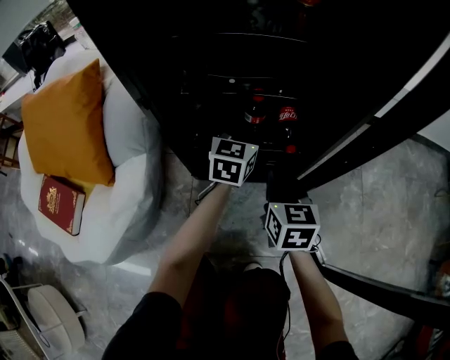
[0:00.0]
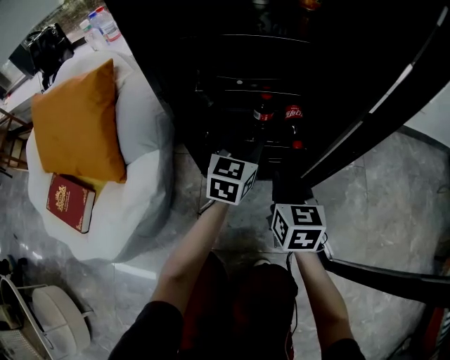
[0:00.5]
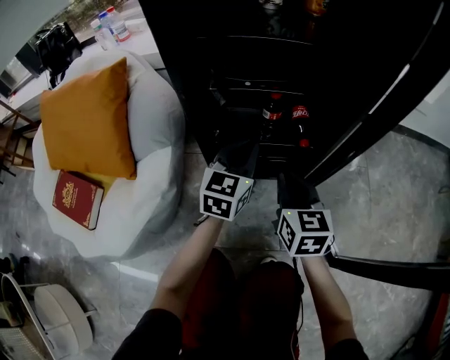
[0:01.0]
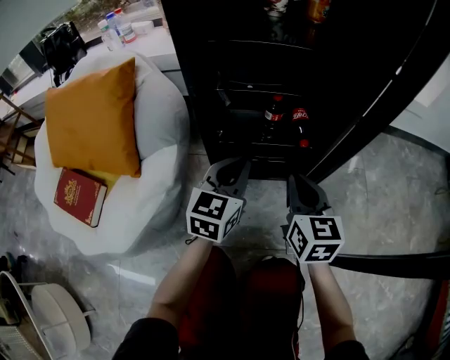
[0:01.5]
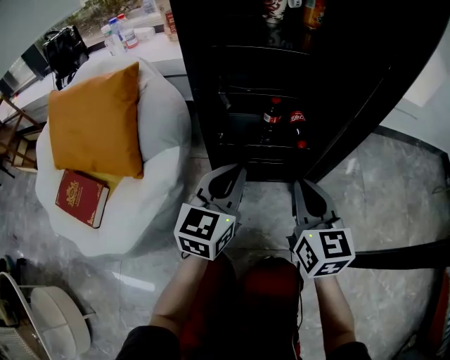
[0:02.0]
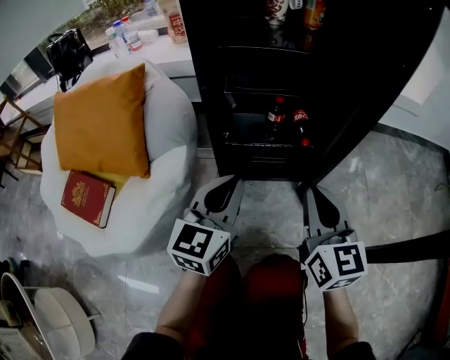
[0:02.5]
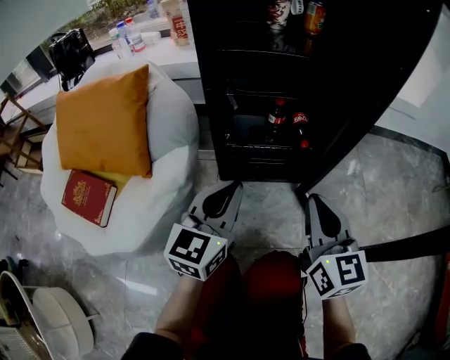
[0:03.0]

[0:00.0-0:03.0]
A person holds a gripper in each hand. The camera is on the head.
0:00.0 to 0:01.5: The right gripper heads upward and backward, covering some 10 cm. Meanwhile the left gripper travels backward by approximately 20 cm, and closes.
0:01.5 to 0:03.0: The two grippers go roughly 15 cm backward and upward.

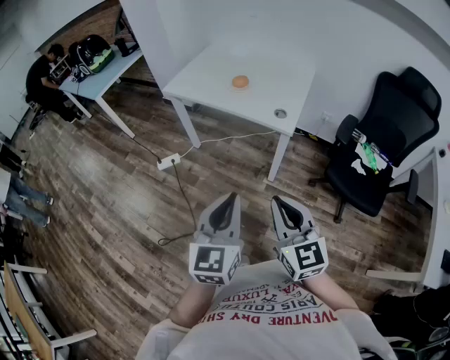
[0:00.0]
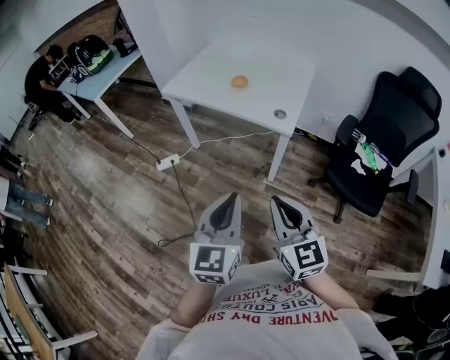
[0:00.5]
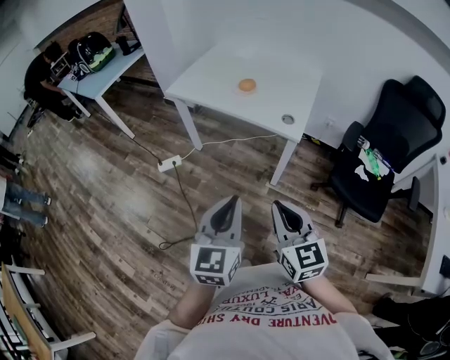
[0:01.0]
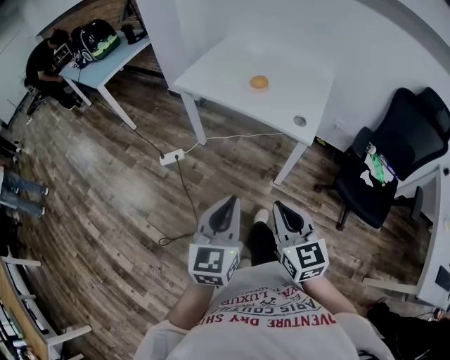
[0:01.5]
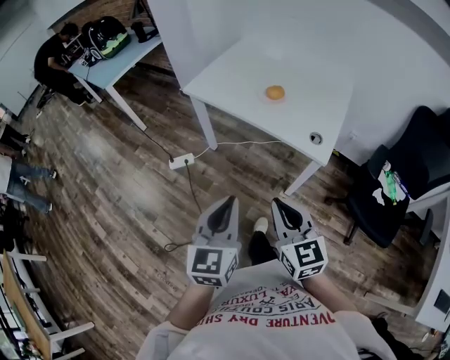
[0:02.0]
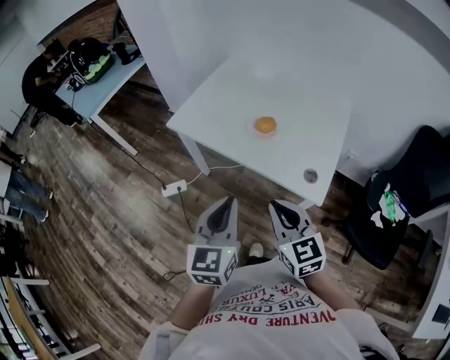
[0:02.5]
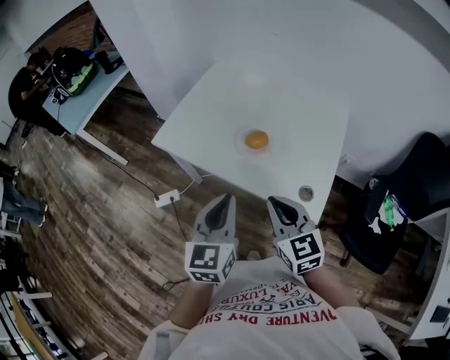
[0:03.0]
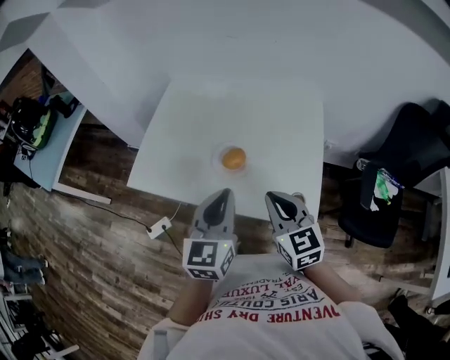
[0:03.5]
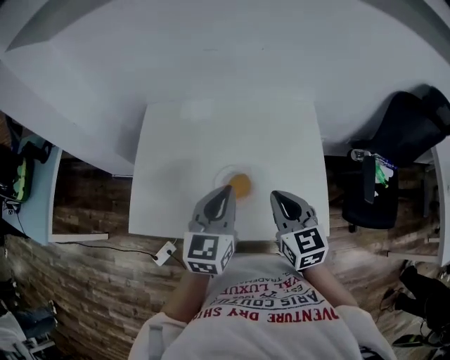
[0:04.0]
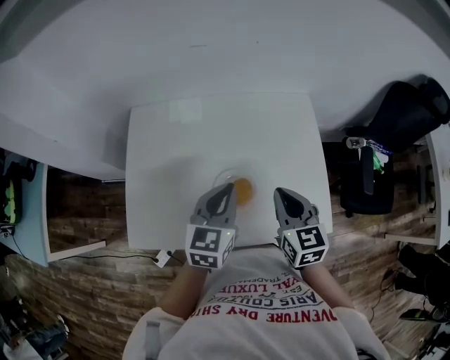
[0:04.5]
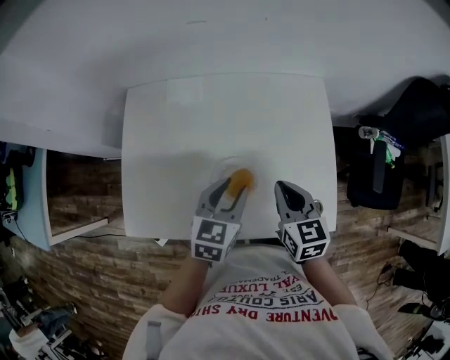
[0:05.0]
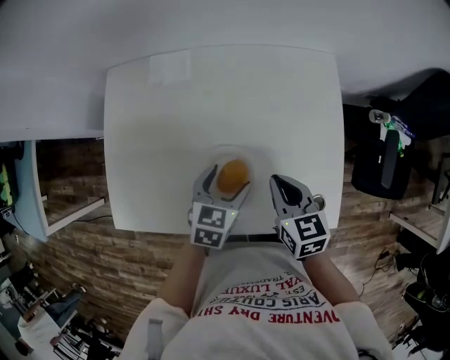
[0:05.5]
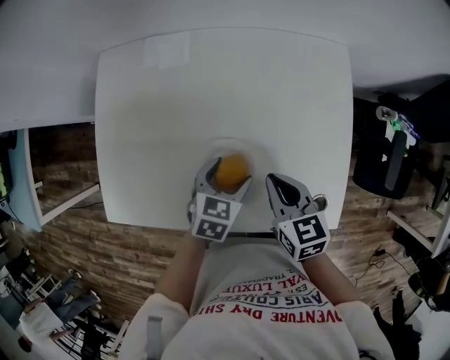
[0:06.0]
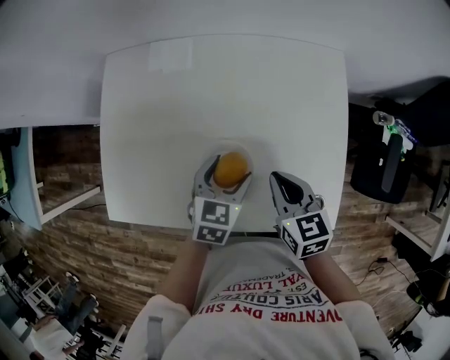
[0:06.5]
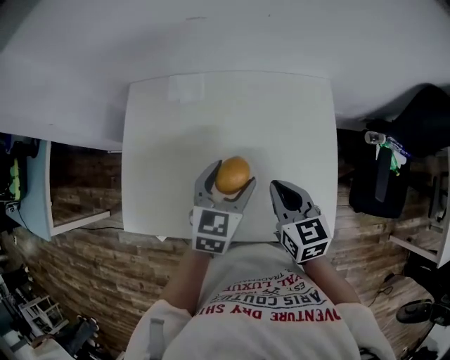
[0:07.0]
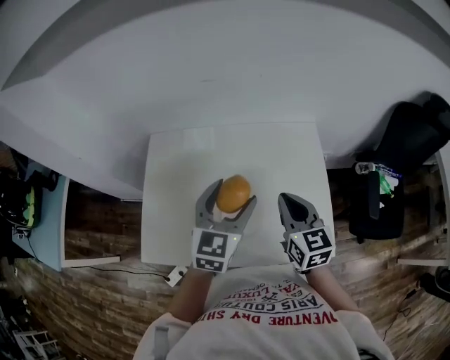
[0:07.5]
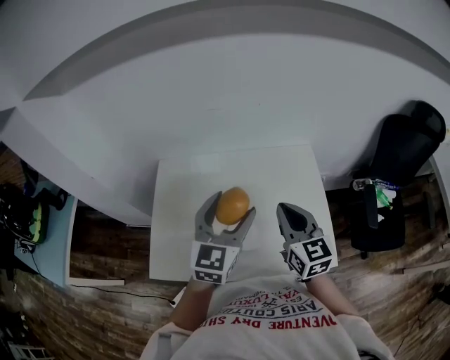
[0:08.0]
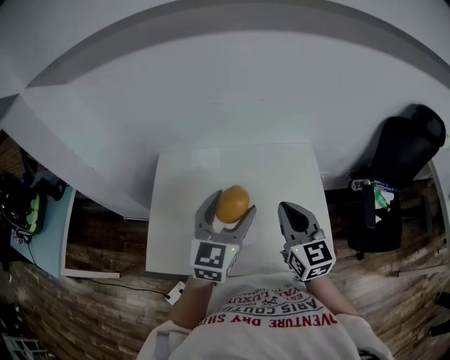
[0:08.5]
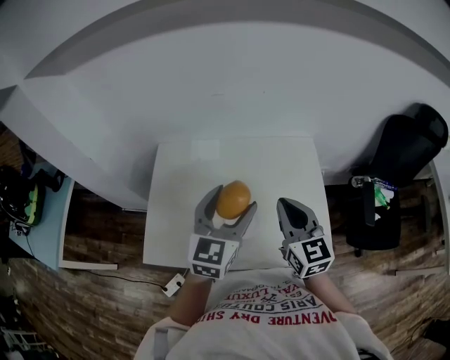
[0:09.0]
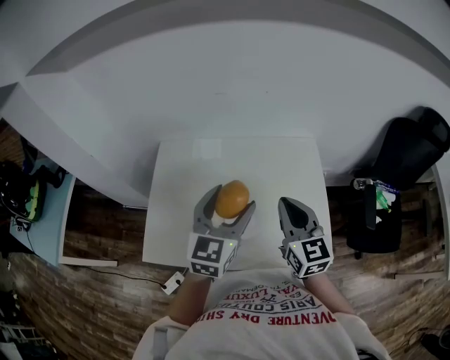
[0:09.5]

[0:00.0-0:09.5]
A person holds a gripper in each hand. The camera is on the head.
0:00.0 to 0:02.0: The grippers both shift forward and to the left by approximately 20 cm.
0:02.0 to 0:04.0: The two grippers travel together, some 50 cm. The left gripper rotates roughly 30 degrees. The right gripper rotates roughly 30 degrees.
0:04.0 to 0:05.5: The left gripper shifts approximately 20 cm downward, rotates some 30 degrees, and opens, while the right gripper goes approximately 15 cm downward and forward, and rotates some 20 degrees.
0:05.5 to 0:07.5: The left gripper travels upward by some 25 cm, and swivels roughly 30 degrees; the right gripper goes some 15 cm upward, and changes its angle by approximately 20 degrees.
0:07.5 to 0:09.5: The left gripper changes place by roughly 5 cm; the right gripper moves upward, some 5 cm.

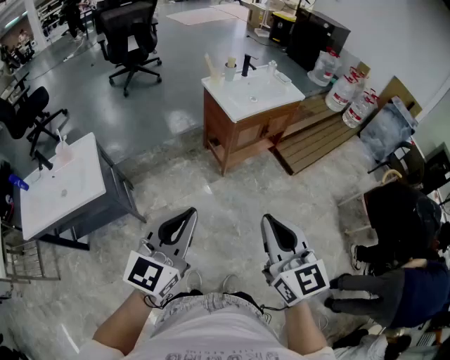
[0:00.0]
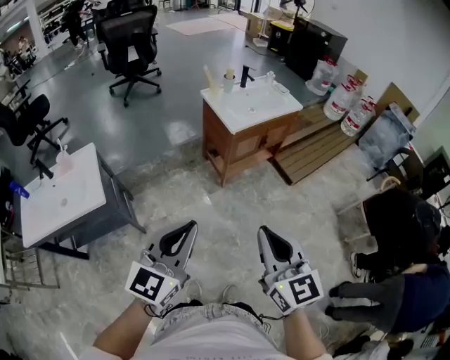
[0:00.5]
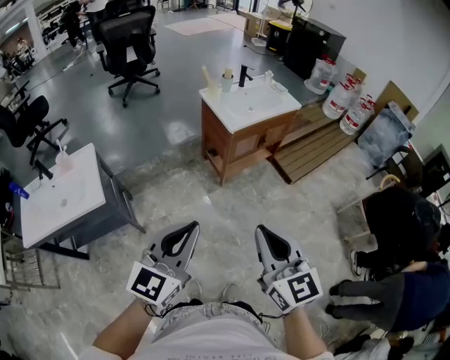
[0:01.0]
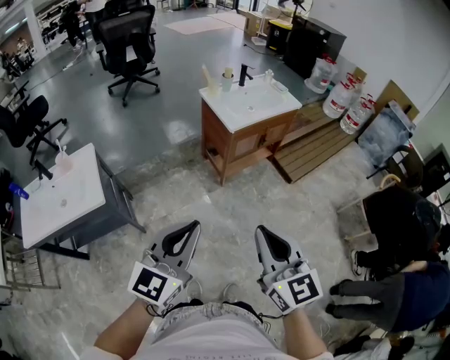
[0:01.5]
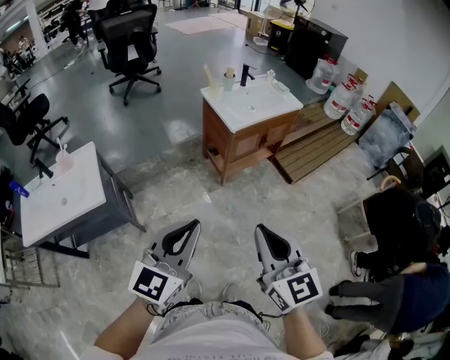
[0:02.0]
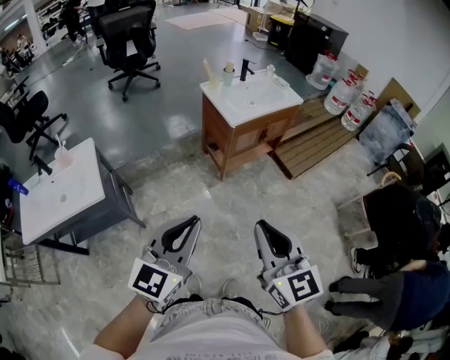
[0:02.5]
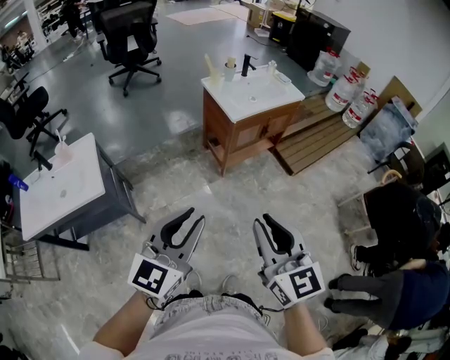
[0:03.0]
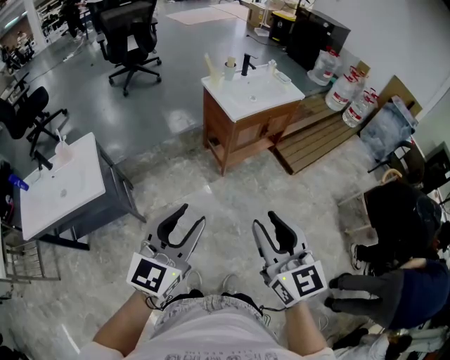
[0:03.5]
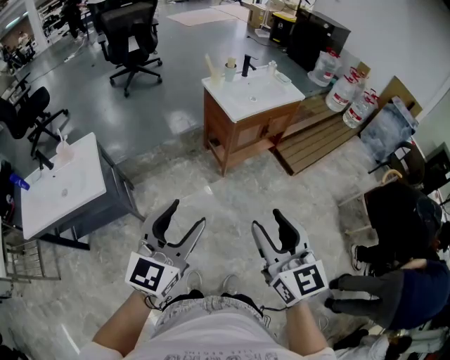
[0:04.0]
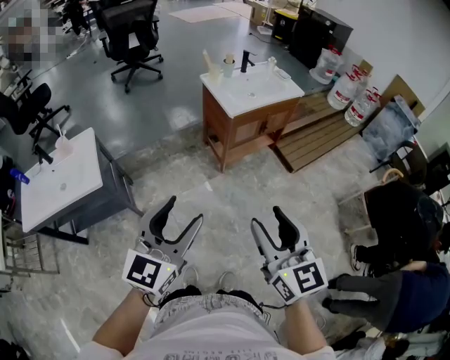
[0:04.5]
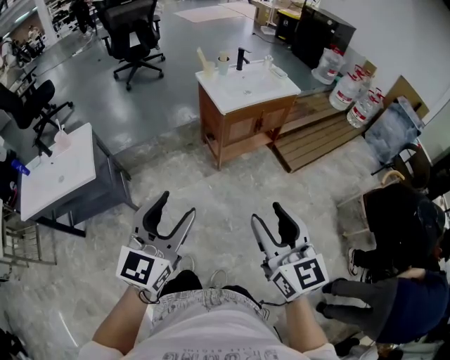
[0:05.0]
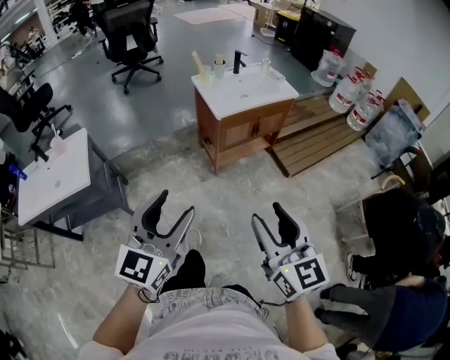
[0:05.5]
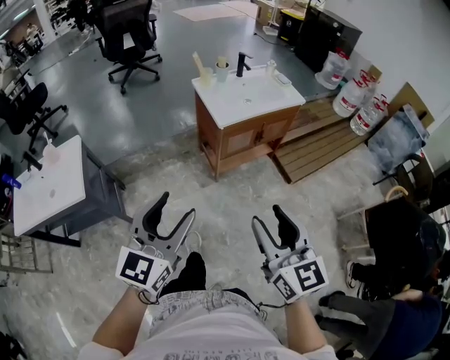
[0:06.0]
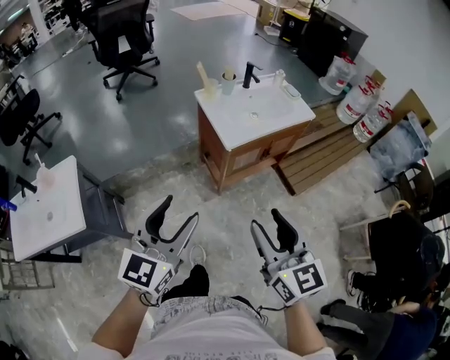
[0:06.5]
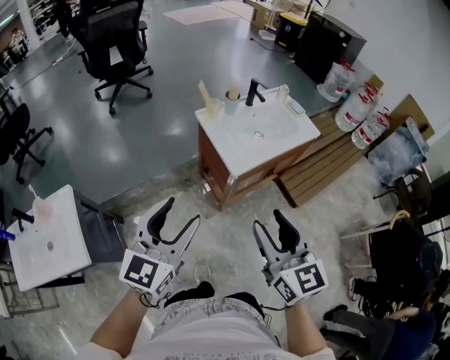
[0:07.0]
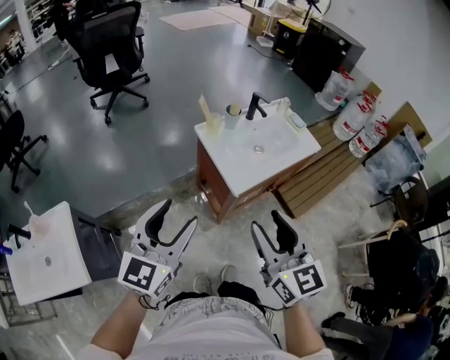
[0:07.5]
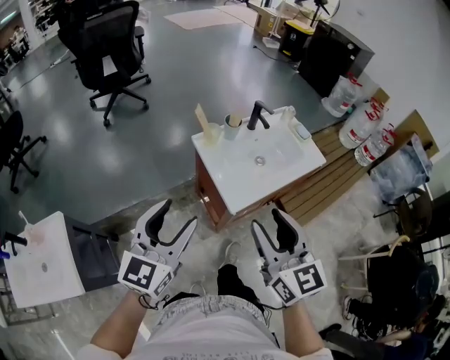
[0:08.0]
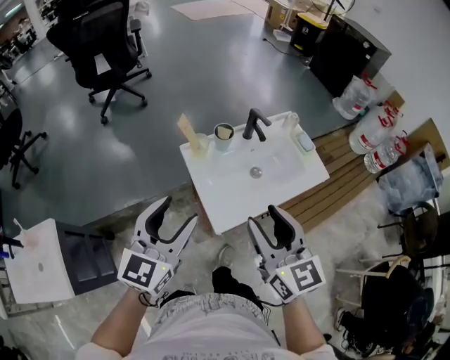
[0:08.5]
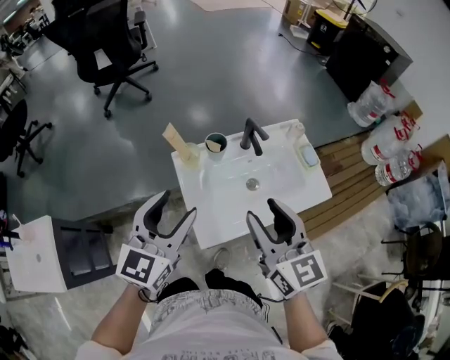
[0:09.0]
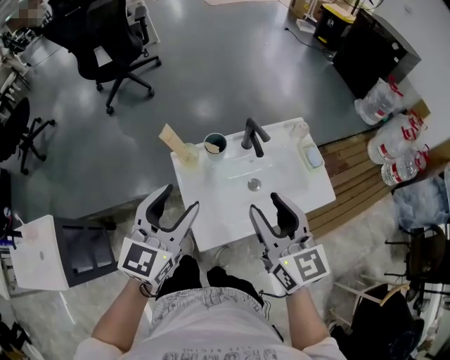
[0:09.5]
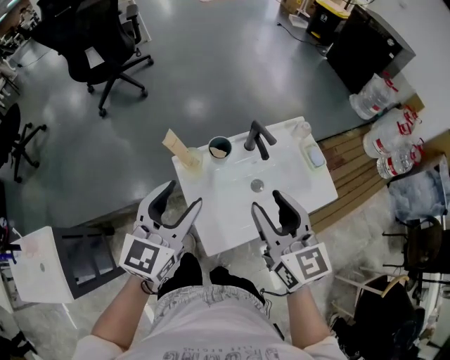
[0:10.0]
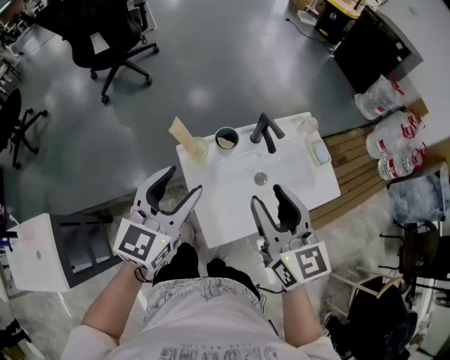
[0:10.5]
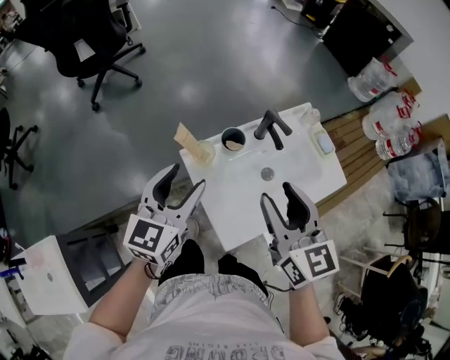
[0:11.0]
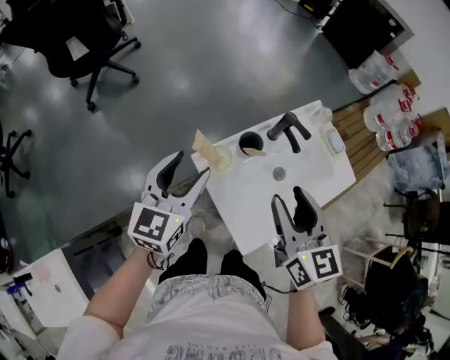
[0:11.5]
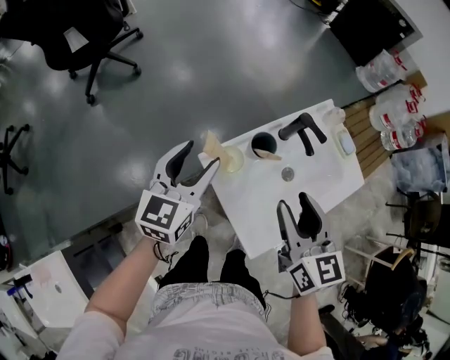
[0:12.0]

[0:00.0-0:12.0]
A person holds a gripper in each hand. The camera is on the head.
0:00.0 to 0:02.0: The two grippers keep their place.
0:02.0 to 0:04.0: The right gripper opens. The left gripper opens its fingers.
0:04.0 to 0:06.0: The left gripper moves forward and to the right, approximately 15 cm; the right gripper travels to the right and forward by some 15 cm.
0:06.0 to 0:08.0: The grippers both shift forward by roughly 40 cm.
0:08.0 to 0:10.0: The two grippers go some 30 cm forward and to the right.
0:10.0 to 0:12.0: The right gripper heads to the left and downward, covering approximately 10 cm. The left gripper goes roughly 20 cm forward, to the left and downward.

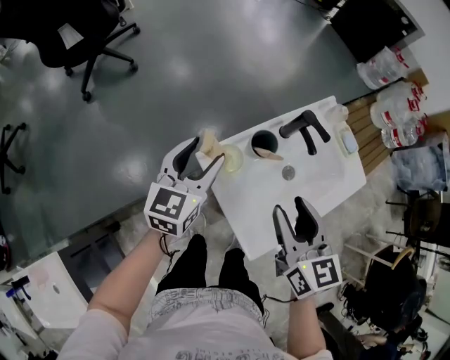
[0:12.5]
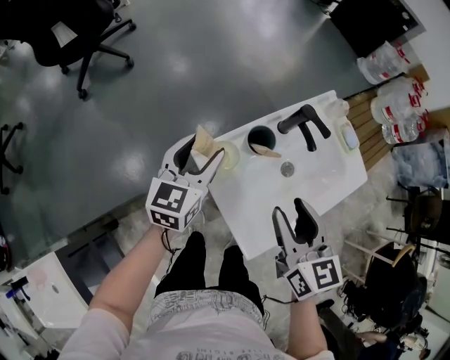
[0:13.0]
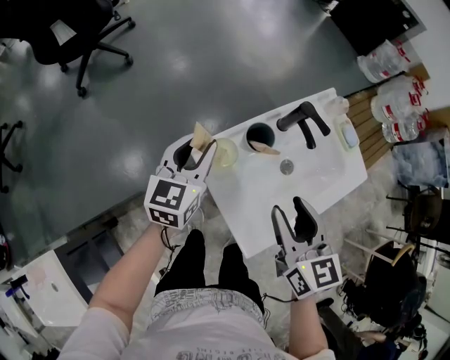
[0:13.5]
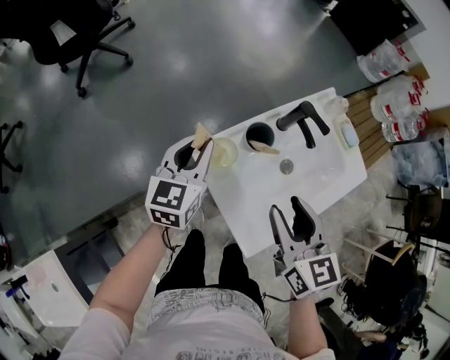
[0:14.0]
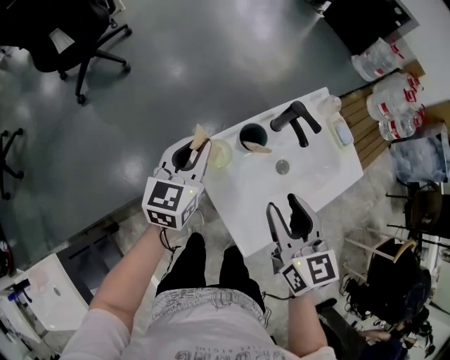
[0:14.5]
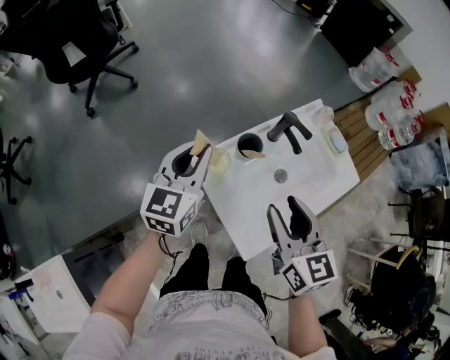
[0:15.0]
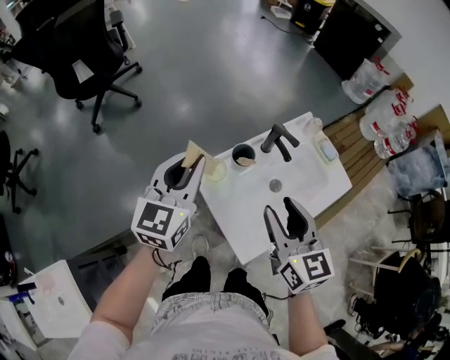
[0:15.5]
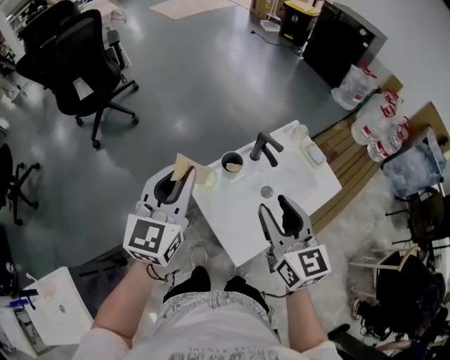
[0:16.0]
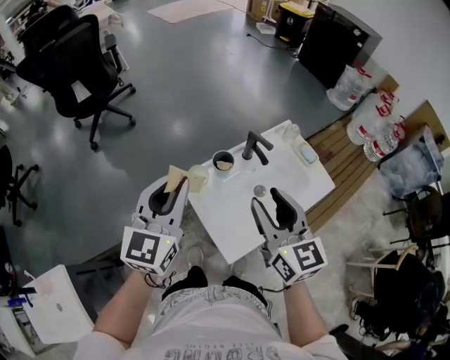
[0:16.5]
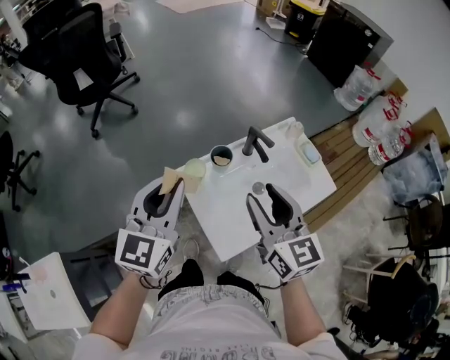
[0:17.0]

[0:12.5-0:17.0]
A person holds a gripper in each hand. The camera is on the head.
0:12.5 to 0:14.5: The left gripper closes up.
0:14.5 to 0:17.0: The left gripper heads upward and backward, covering about 20 cm, while the right gripper heads upward, covering roughly 10 cm.
